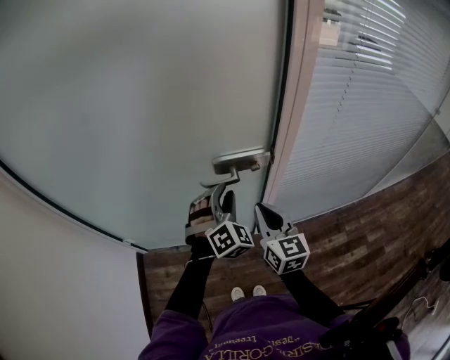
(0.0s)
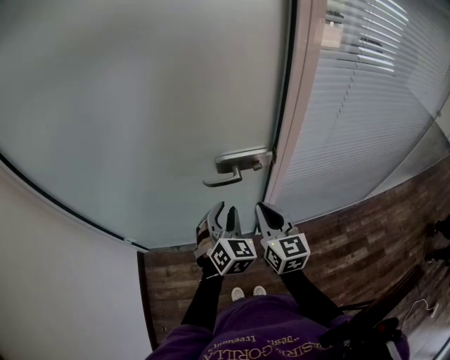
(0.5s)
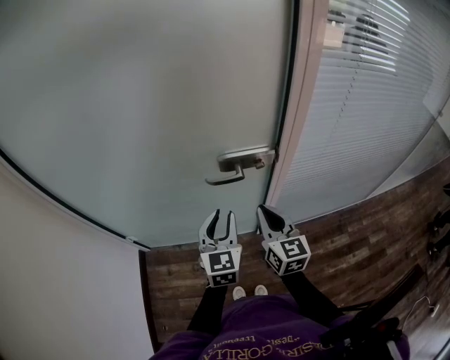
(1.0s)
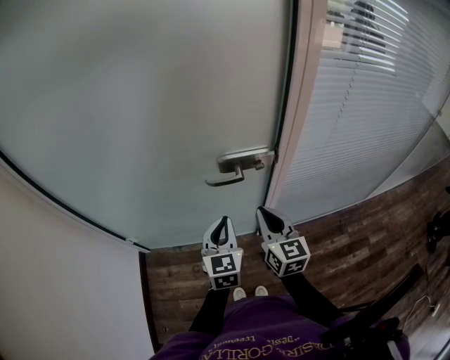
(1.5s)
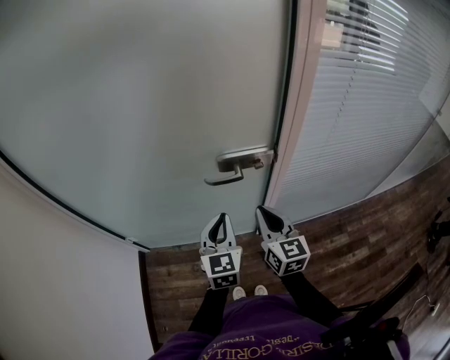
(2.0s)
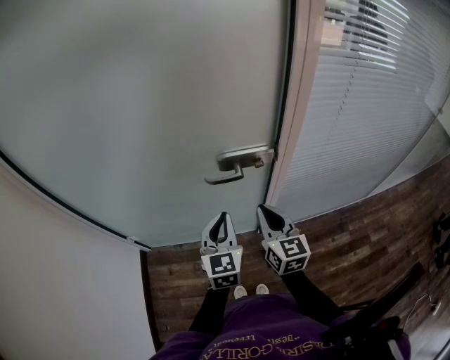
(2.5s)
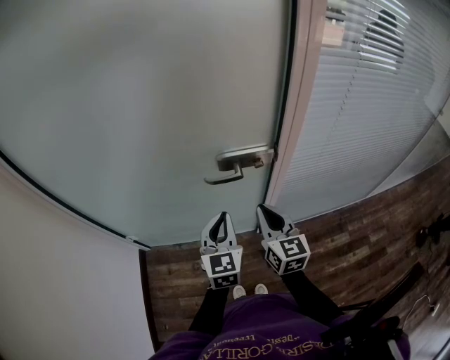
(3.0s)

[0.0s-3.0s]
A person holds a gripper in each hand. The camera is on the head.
0.0s to 1.5s: The left gripper goes approximately 5 cm backward, rolls counterclockwise, seen from behind, by some 50 degrees, and closes up.
1.5s to 3.0s: The grippers move only a little.

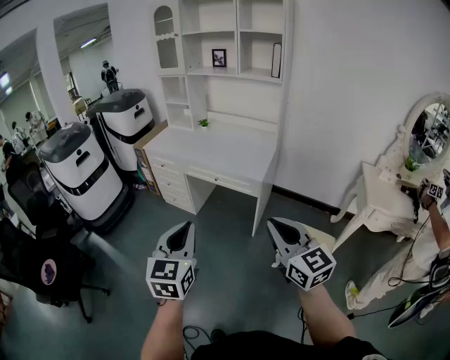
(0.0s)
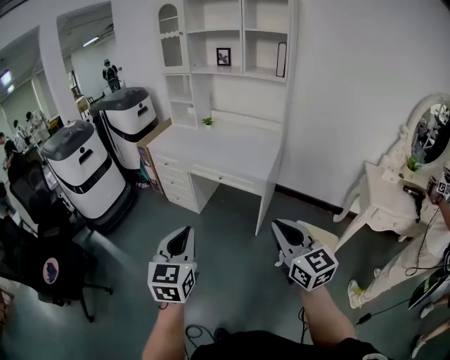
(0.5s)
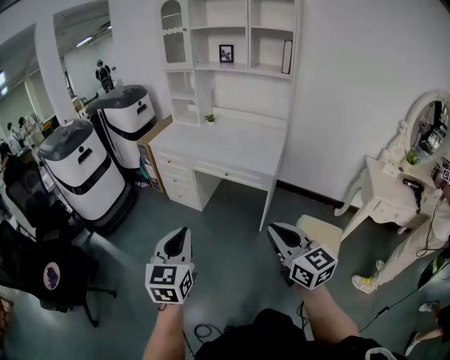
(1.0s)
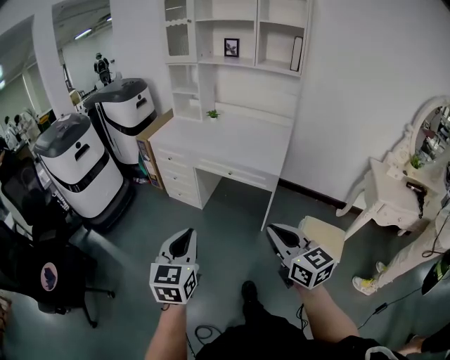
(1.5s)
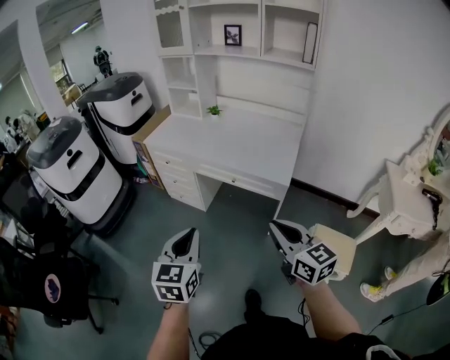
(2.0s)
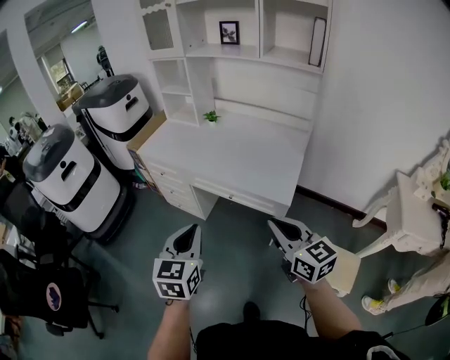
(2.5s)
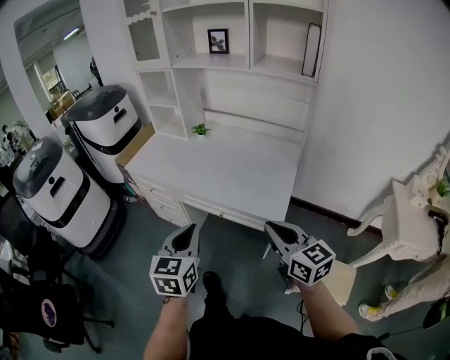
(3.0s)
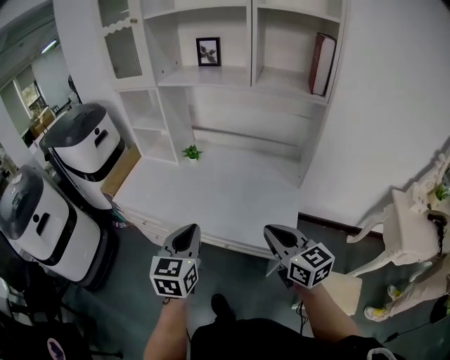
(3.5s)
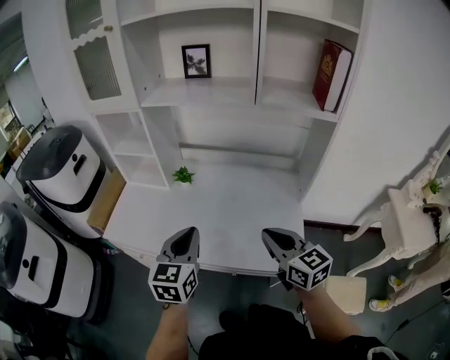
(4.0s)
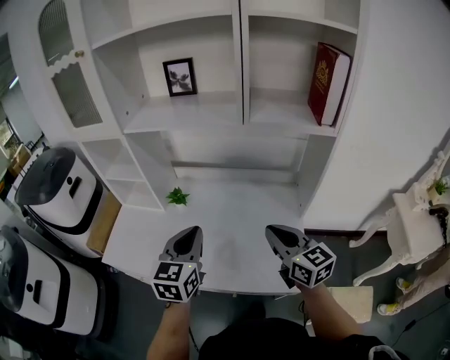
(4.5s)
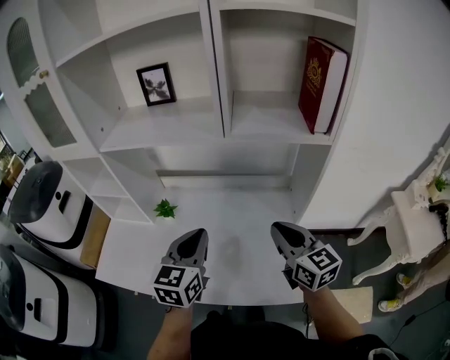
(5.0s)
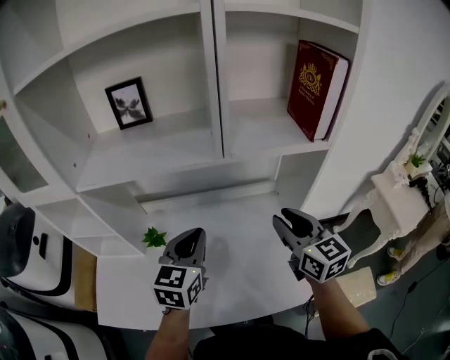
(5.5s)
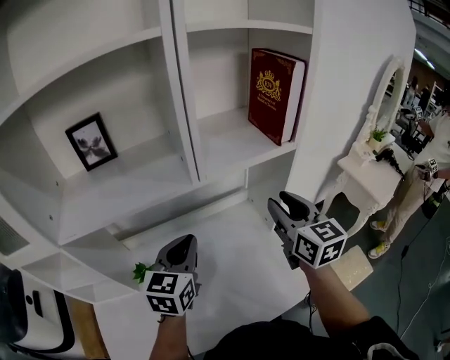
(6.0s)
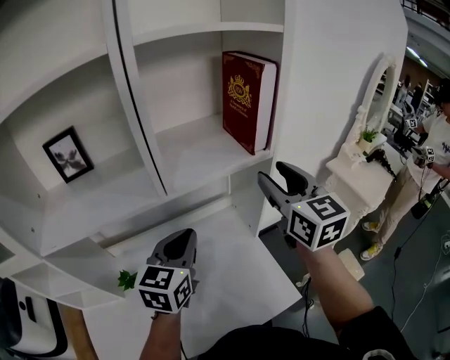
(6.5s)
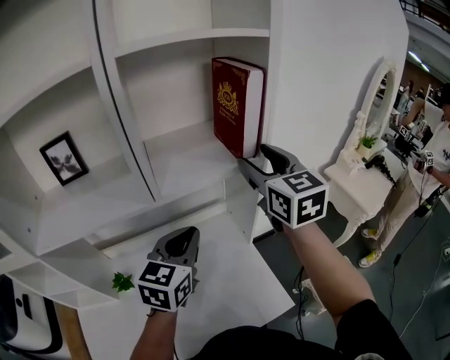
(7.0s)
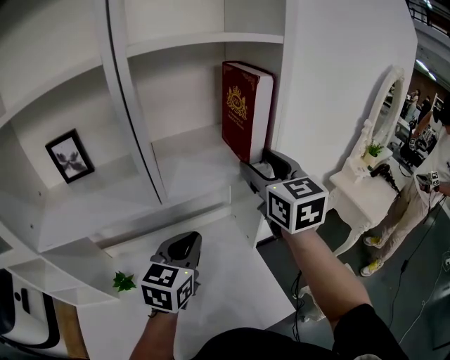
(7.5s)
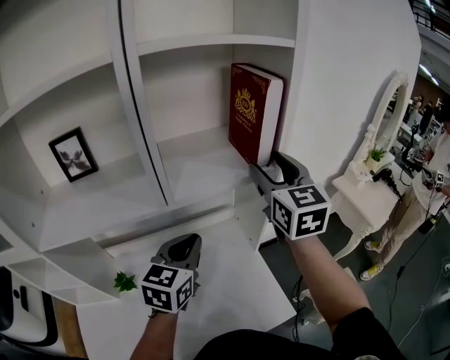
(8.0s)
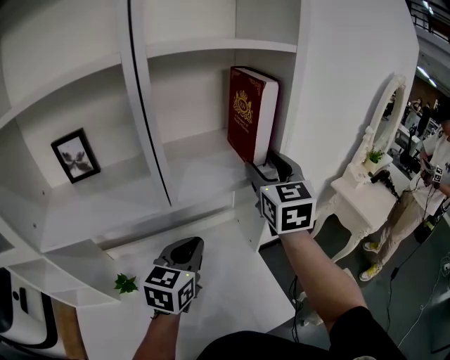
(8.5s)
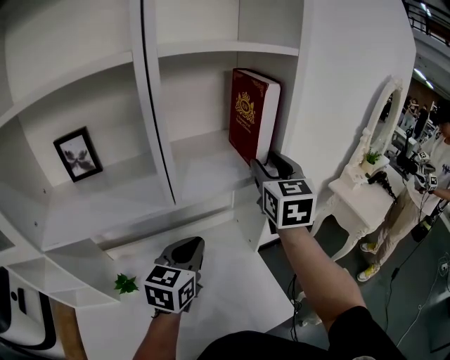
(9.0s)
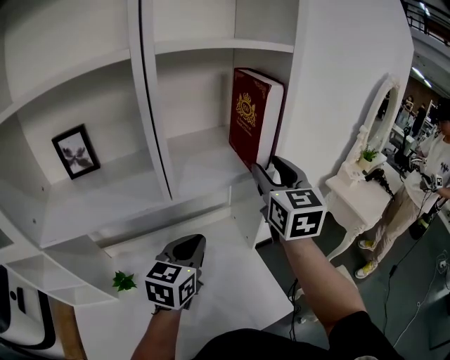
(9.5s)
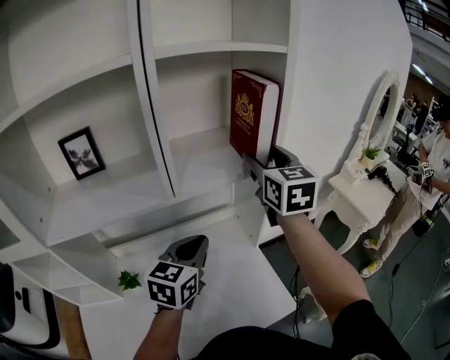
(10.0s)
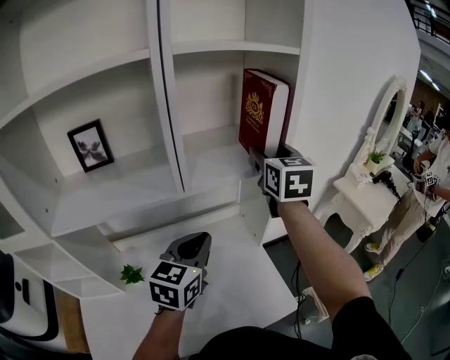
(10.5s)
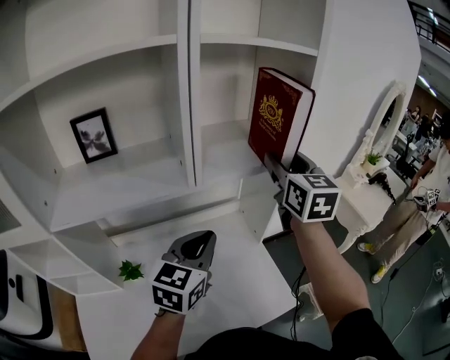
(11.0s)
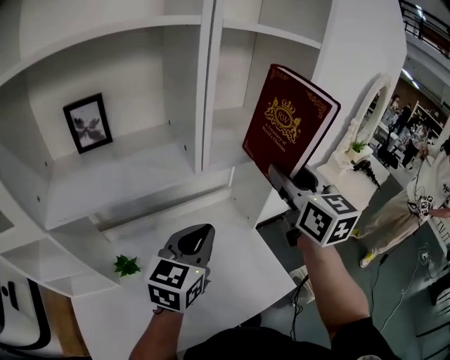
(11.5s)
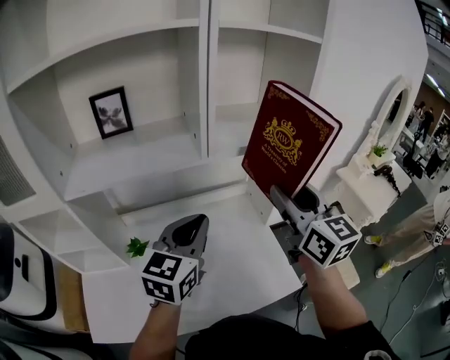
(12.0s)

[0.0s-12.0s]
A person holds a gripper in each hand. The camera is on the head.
0.0s to 2.0s: The left gripper travels forward and downward by about 20 cm. Meanwhile the right gripper travels forward by approximately 20 cm.
2.0s to 4.0s: The two grippers travel together, forward, roughly 50 cm.
4.0s to 6.0s: The left gripper moves roughly 30 cm, and changes its angle by some 30 degrees. Meanwhile the right gripper changes place by roughly 30 cm, rotates roughly 50 degrees, and opens up.
6.0s to 8.0s: The left gripper moves to the right, some 10 cm. Meanwhile the right gripper goes about 15 cm upward and forward.
8.0s to 10.0s: The grippers stay close to where they were, moving slightly.
10.0s to 12.0s: The right gripper goes approximately 20 cm backward, while the left gripper shifts some 10 cm backward and to the left.

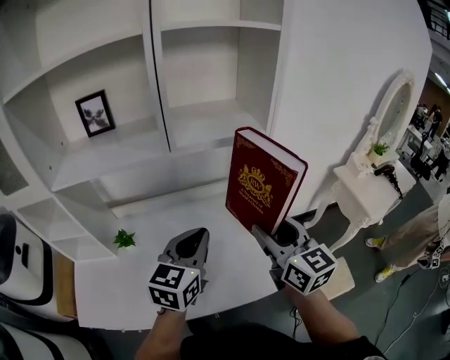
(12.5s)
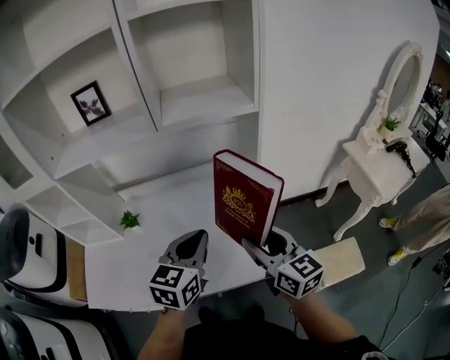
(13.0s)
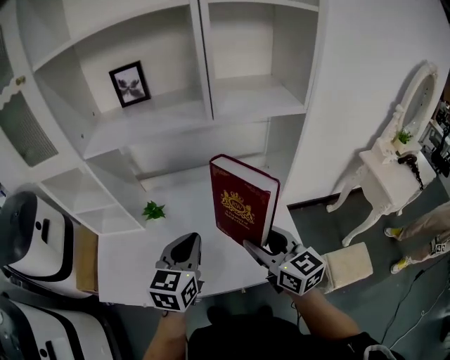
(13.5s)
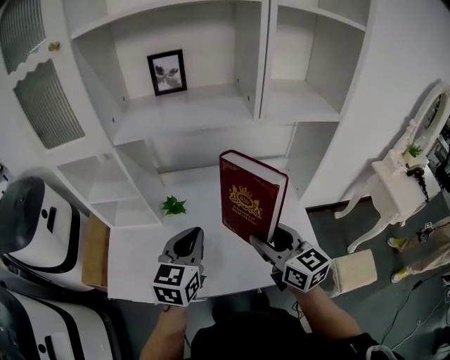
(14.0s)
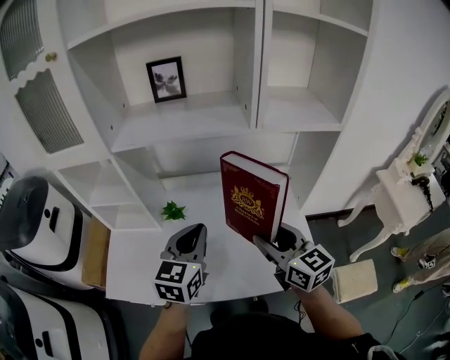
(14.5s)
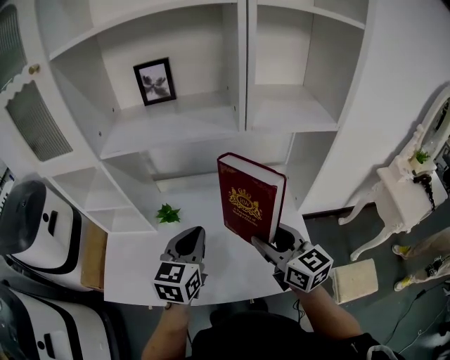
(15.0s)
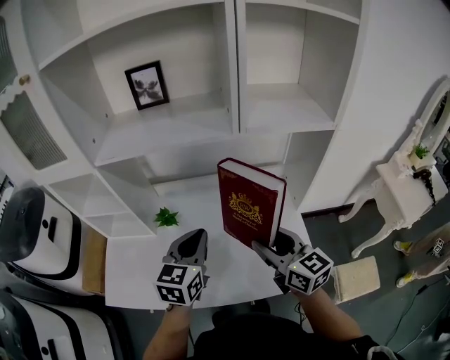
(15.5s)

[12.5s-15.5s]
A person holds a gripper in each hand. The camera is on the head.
12.5s to 14.0s: The two grippers go about 20 cm to the left.
14.0s to 15.5s: The two grippers go about 5 cm to the right.

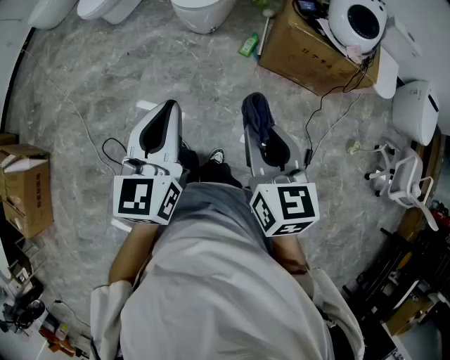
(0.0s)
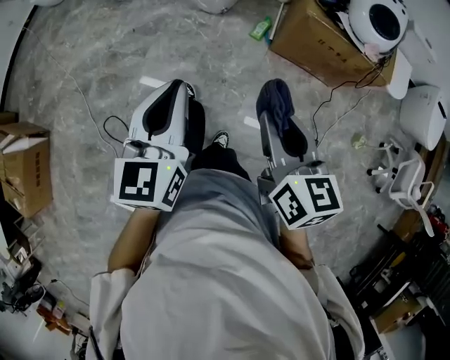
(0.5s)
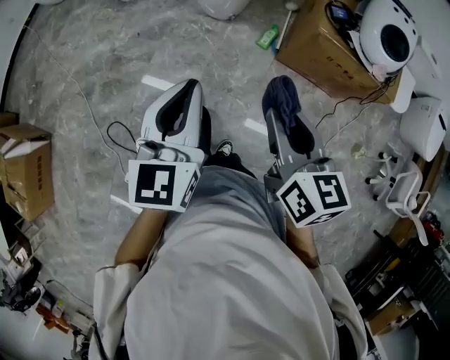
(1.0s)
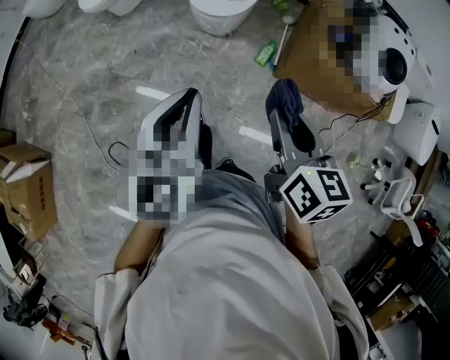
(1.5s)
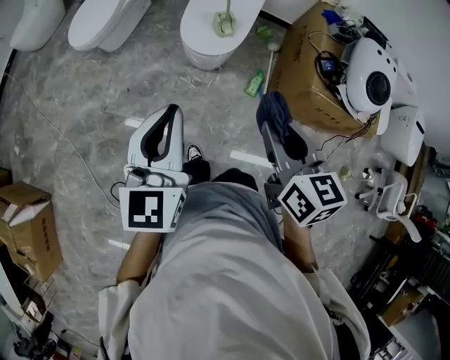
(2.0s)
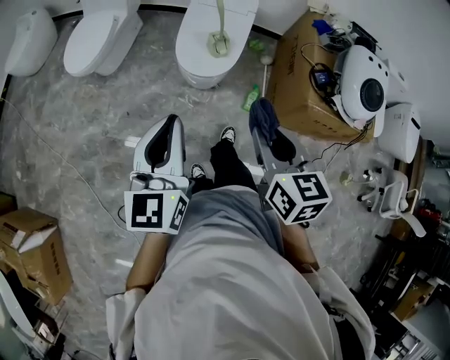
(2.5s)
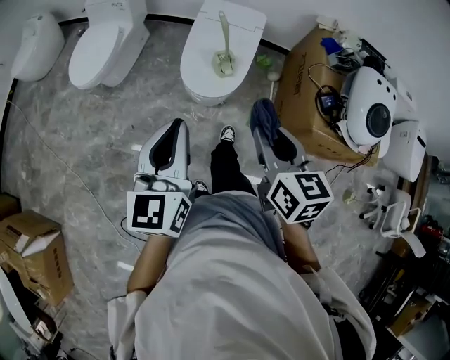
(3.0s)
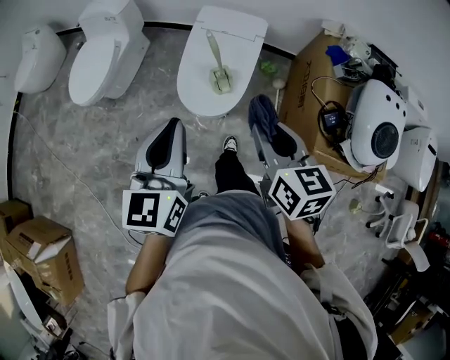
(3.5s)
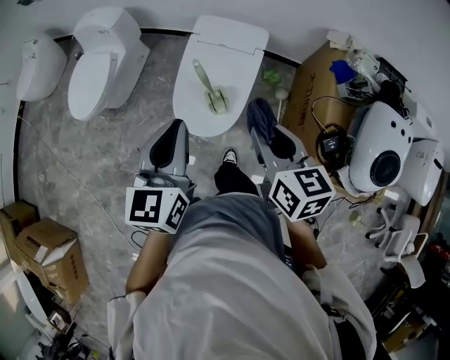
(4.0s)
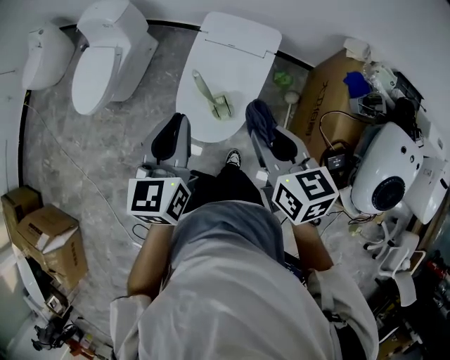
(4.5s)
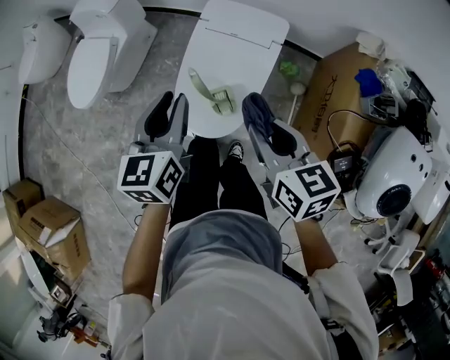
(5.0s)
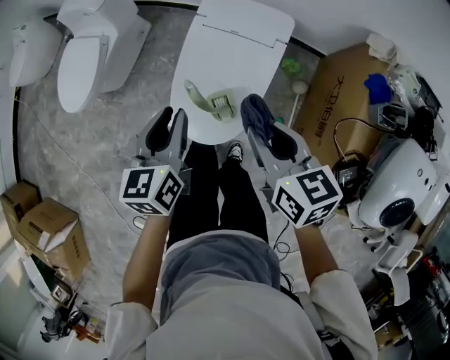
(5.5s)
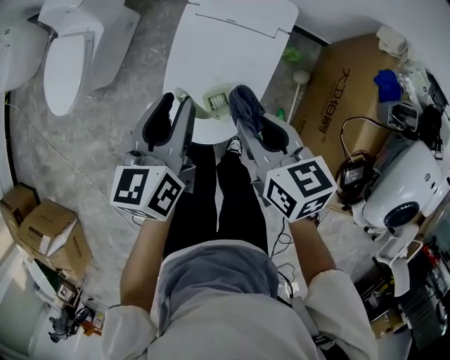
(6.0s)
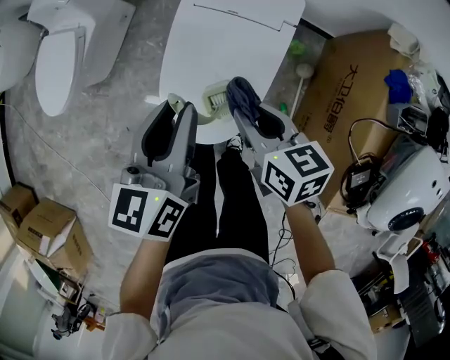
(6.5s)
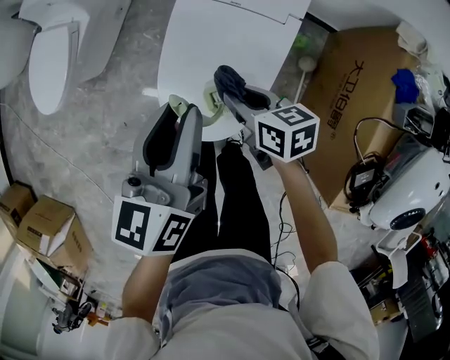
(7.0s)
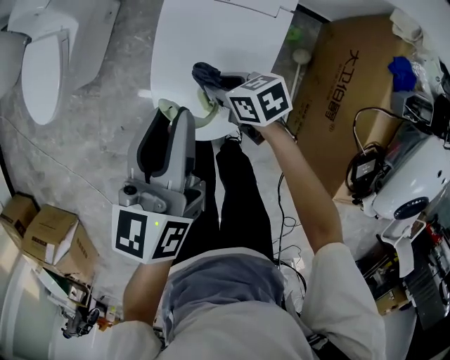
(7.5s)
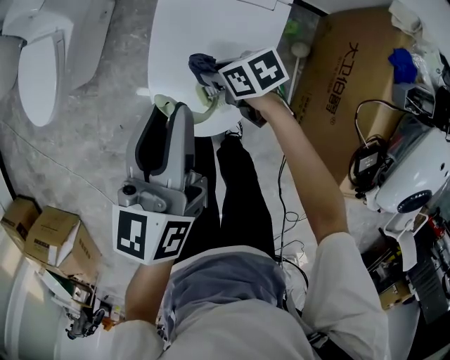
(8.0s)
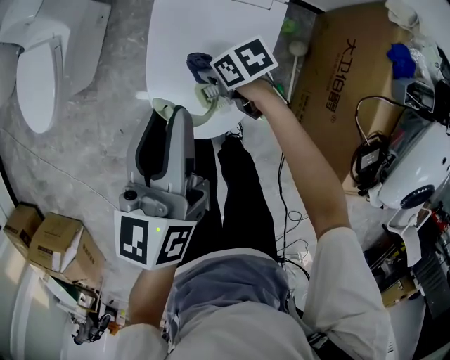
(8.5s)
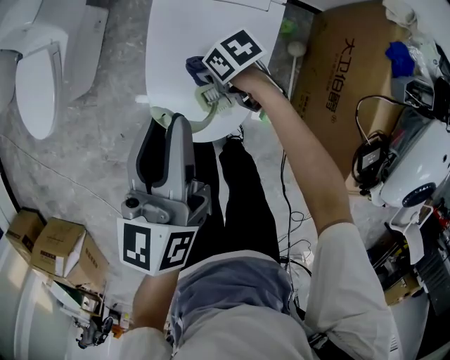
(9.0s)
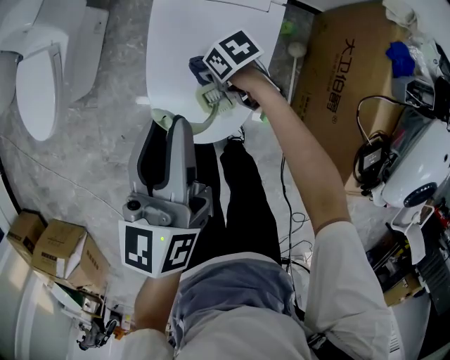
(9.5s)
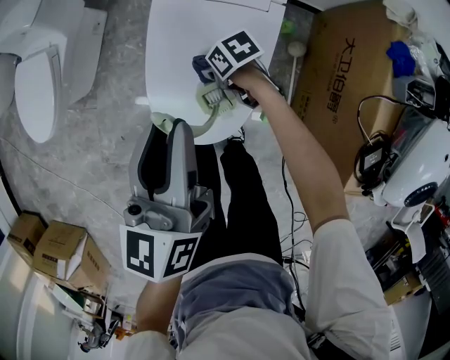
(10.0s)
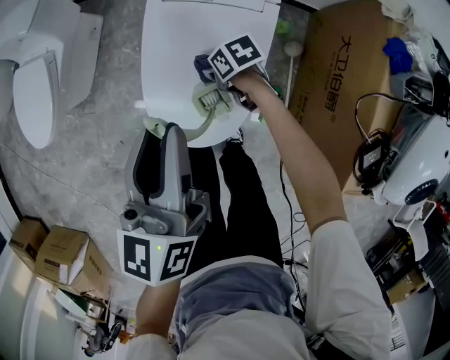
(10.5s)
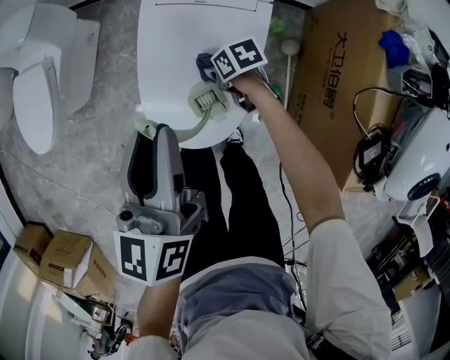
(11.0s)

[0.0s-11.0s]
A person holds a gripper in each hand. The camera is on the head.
0.0s to 2.0s: The grippers both shift forward and to the left by approximately 40 cm.
2.0s to 3.5s: The grippers both shift forward by approximately 30 cm.
3.5s to 5.5s: The grippers both shift forward and downward by roughly 35 cm. The left gripper rotates roughly 20 degrees.
5.5s to 7.5s: The left gripper moves some 5 cm; the right gripper shifts approximately 30 cm downward, and swivels some 30 degrees.
7.5s to 9.0s: The right gripper goes some 5 cm downward.
9.0s to 11.0s: The right gripper goes approximately 5 cm downward.
